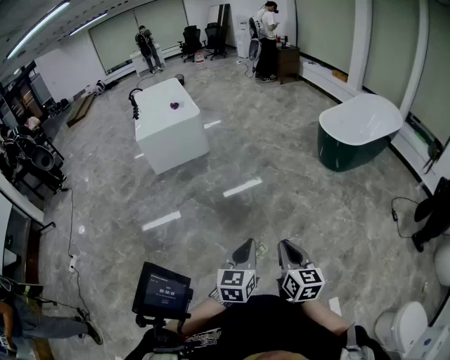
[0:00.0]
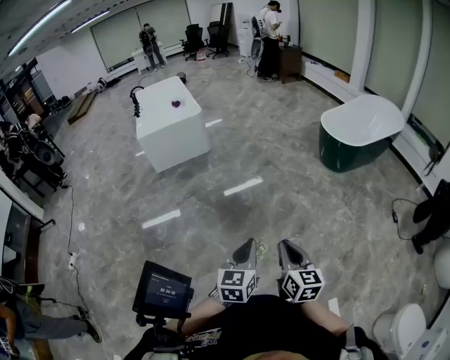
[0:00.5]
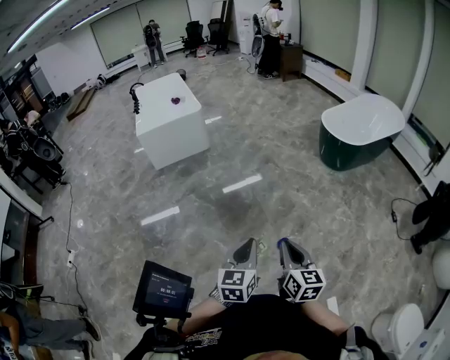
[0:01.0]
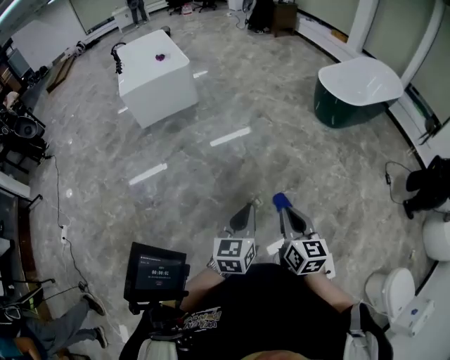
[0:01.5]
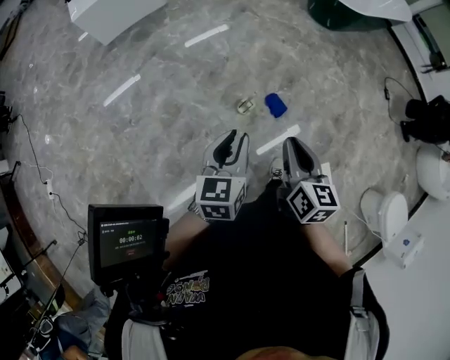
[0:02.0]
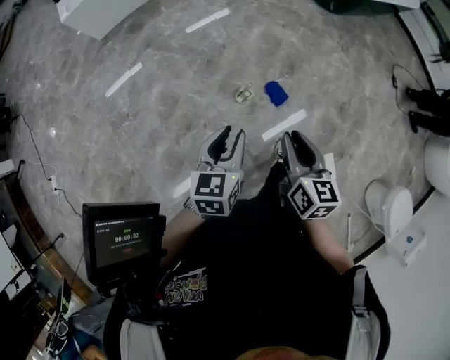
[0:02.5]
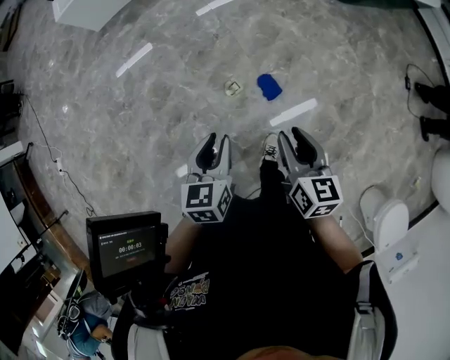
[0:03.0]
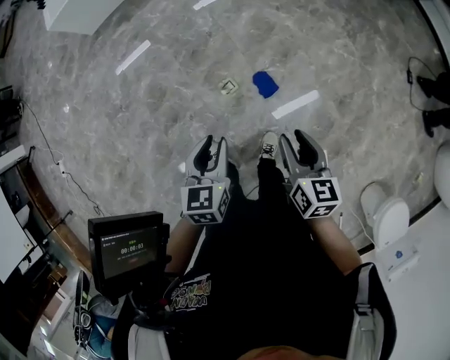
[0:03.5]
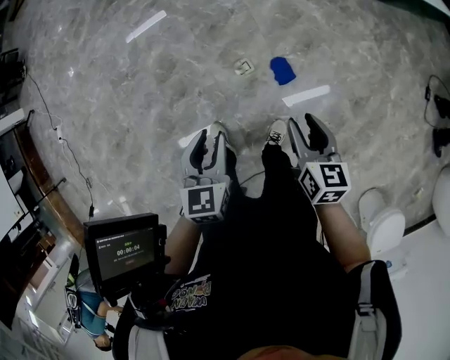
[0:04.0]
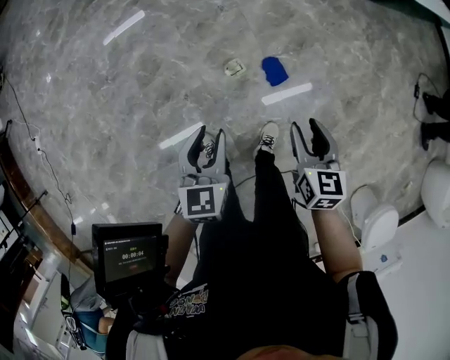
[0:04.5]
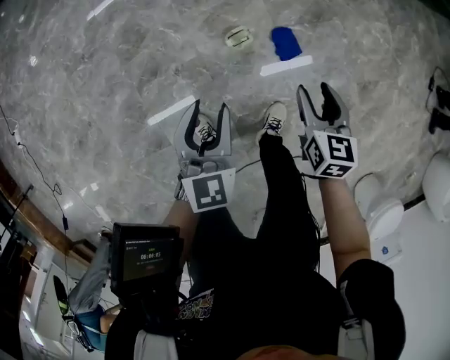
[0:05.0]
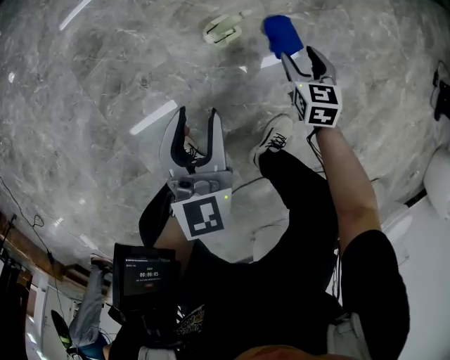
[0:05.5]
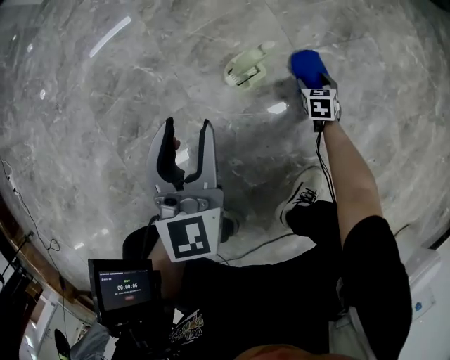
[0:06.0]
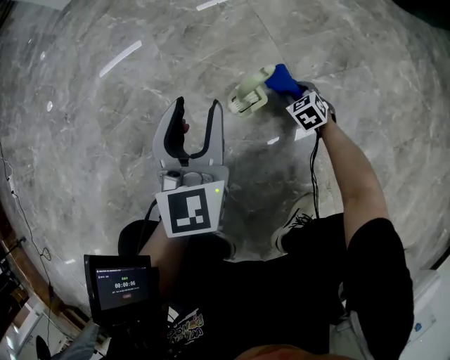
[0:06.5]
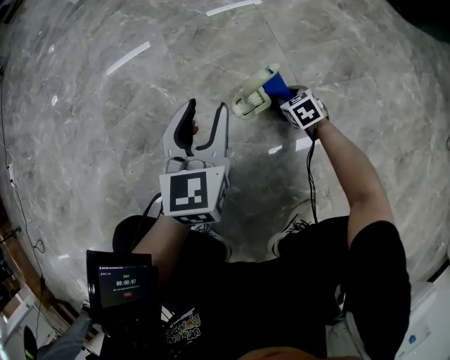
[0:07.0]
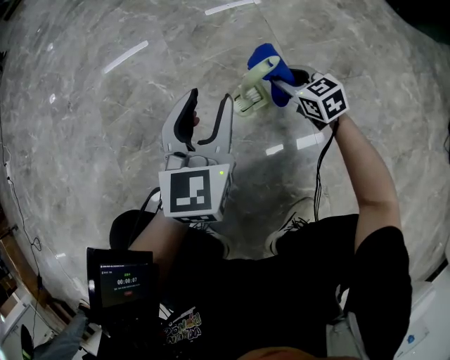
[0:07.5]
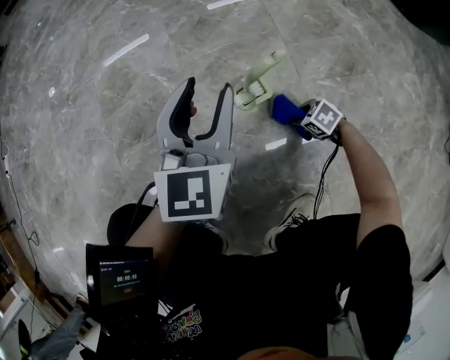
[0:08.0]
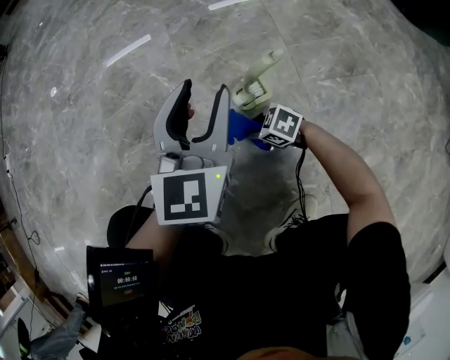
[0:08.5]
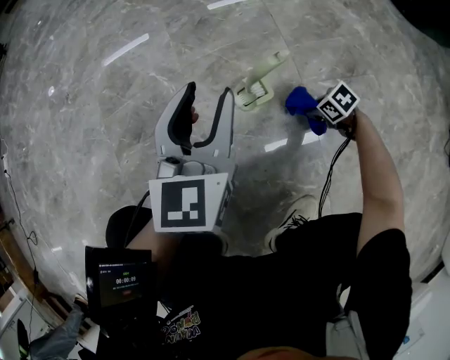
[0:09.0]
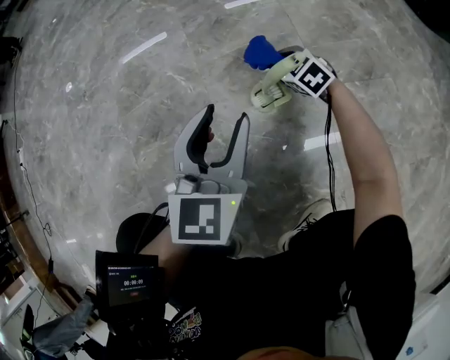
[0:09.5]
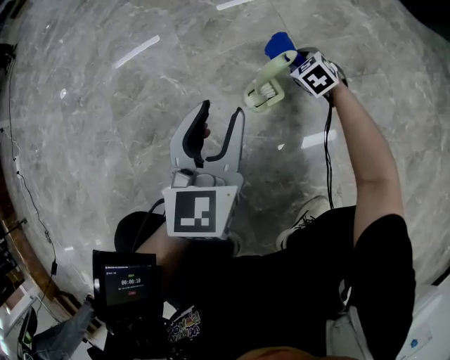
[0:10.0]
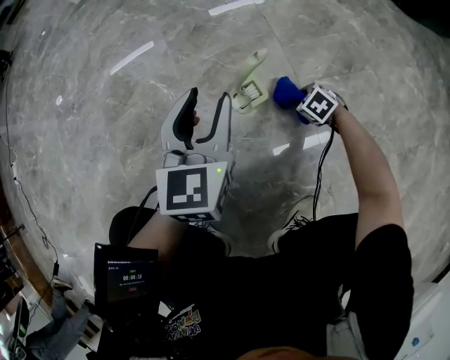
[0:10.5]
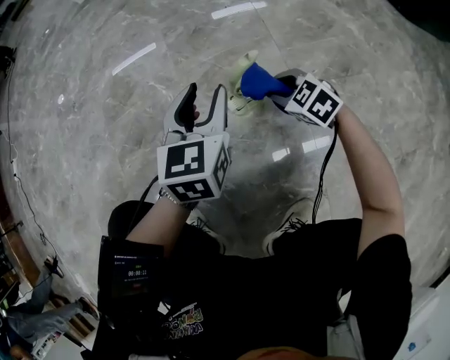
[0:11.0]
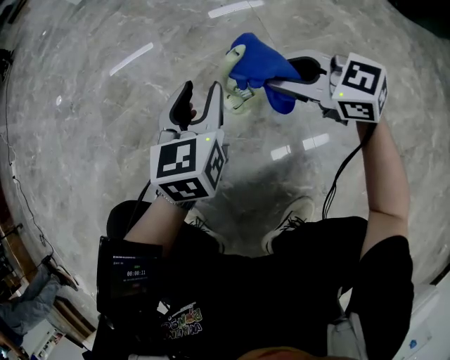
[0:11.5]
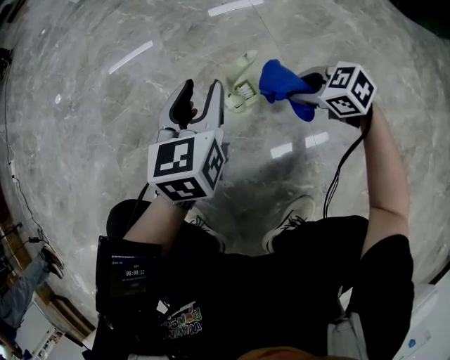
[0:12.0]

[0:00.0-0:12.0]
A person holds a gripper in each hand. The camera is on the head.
0:00.0 to 0:02.0: The left gripper goes some 10 cm to the left and downward, and opens its fingers; the right gripper moves some 5 cm.
0:02.0 to 0:04.0: The right gripper travels to the right, downward and forward by approximately 25 cm, swivels about 20 degrees, and opens. The left gripper moves to the right and downward, about 15 cm, and turns by about 30 degrees.
0:04.0 to 0:06.0: The left gripper moves downward, some 40 cm; the right gripper is displaced downward by approximately 80 cm, and swivels about 40 degrees.
0:06.0 to 0:08.0: The right gripper travels upward and back again, approximately 15 cm each way, turns by some 60 degrees, and closes up.
0:08.0 to 0:10.0: The right gripper shifts by roughly 20 cm, and turns by roughly 30 degrees.
0:10.0 to 0:12.0: The right gripper swings up and down, about 30 cm each way, with 2 reversals, and turns by approximately 30 degrees; the left gripper changes place by about 5 cm.

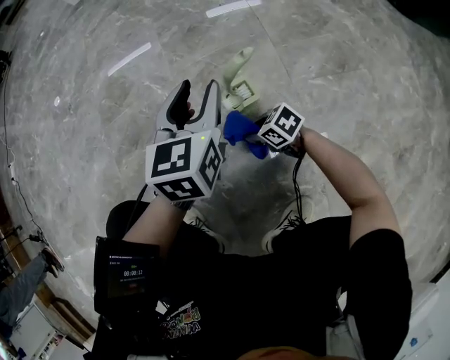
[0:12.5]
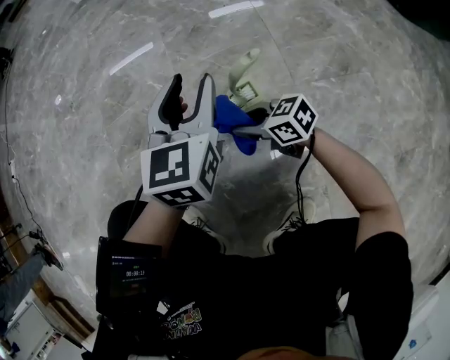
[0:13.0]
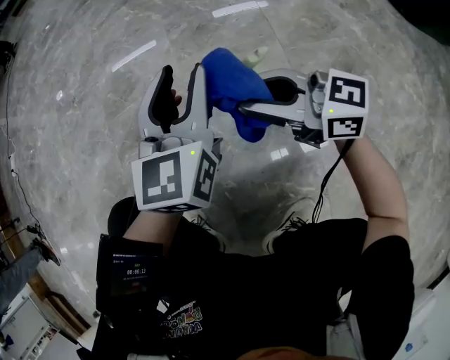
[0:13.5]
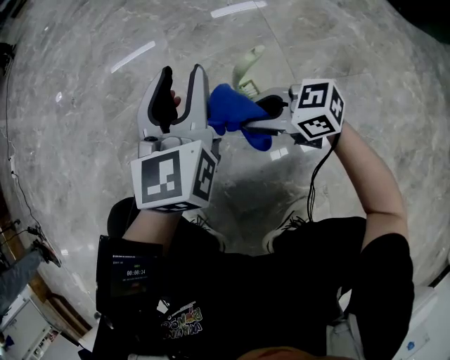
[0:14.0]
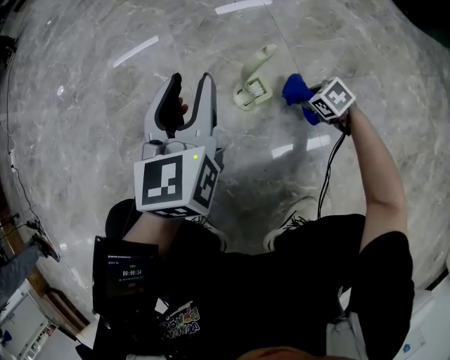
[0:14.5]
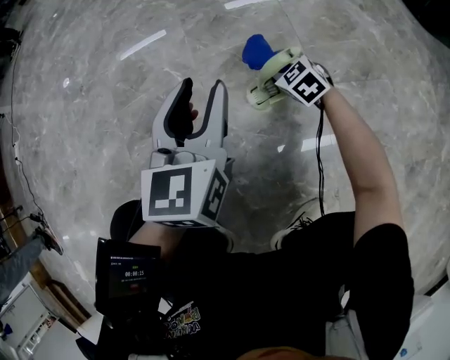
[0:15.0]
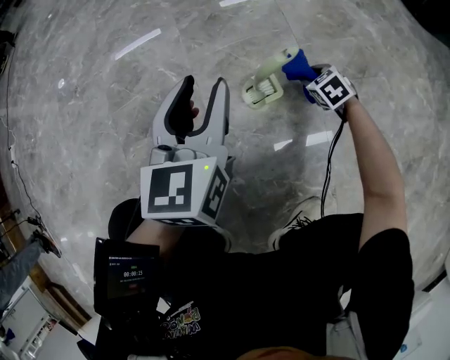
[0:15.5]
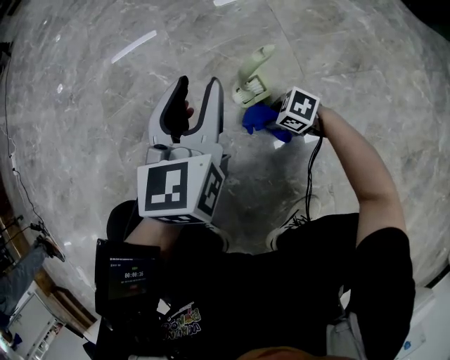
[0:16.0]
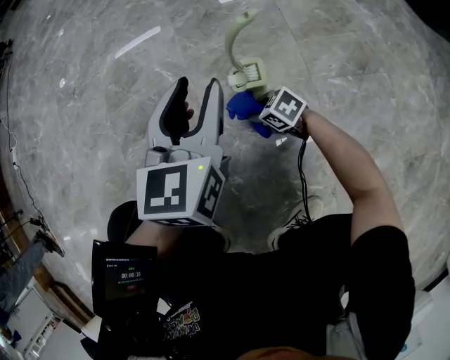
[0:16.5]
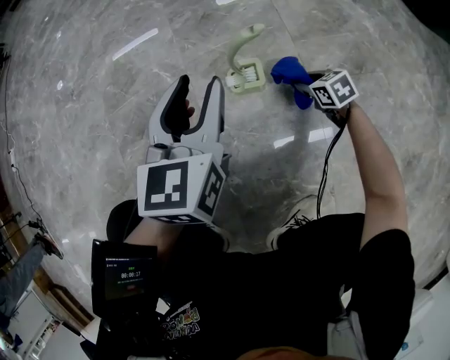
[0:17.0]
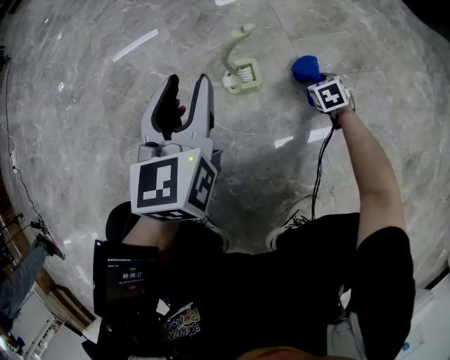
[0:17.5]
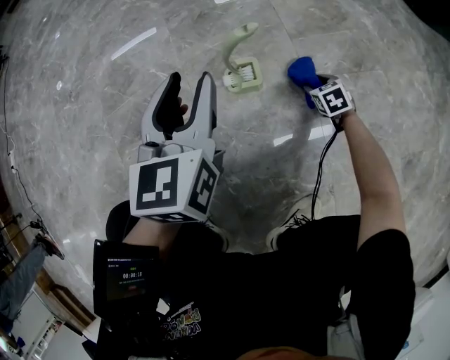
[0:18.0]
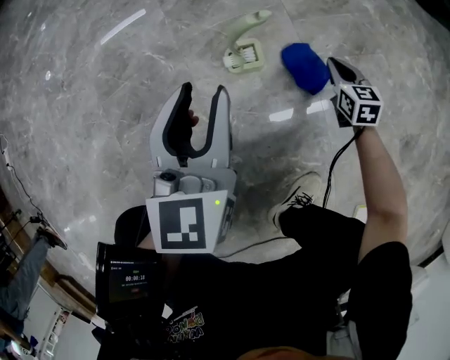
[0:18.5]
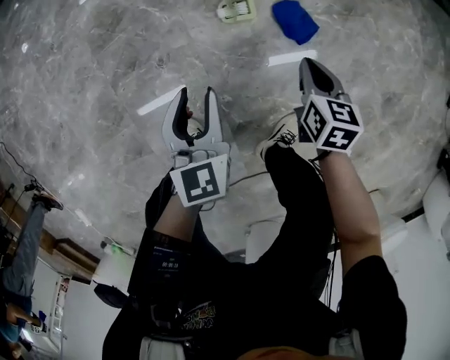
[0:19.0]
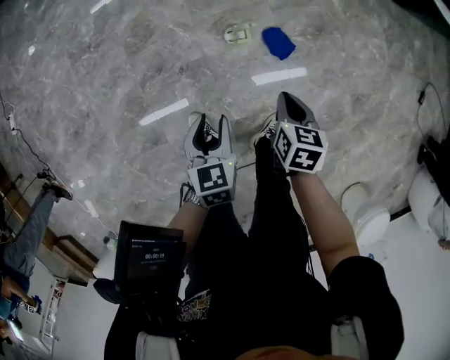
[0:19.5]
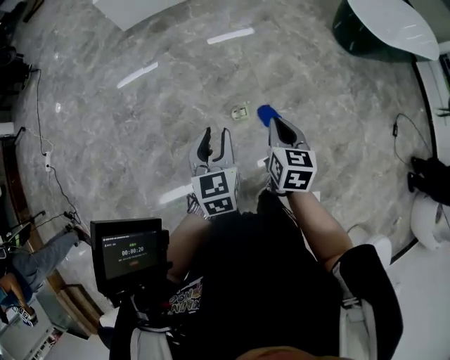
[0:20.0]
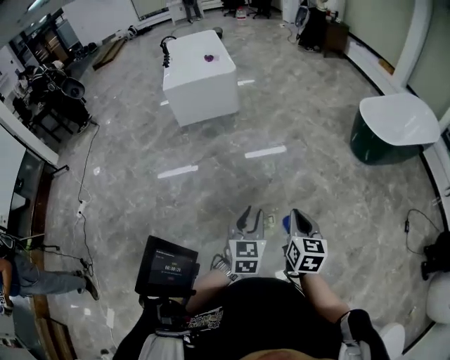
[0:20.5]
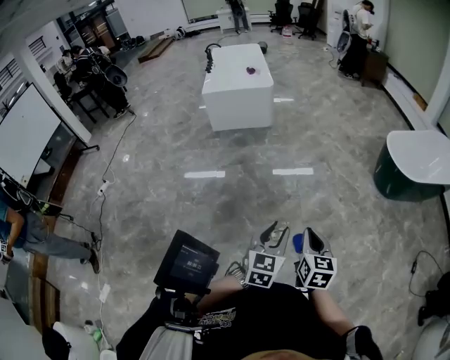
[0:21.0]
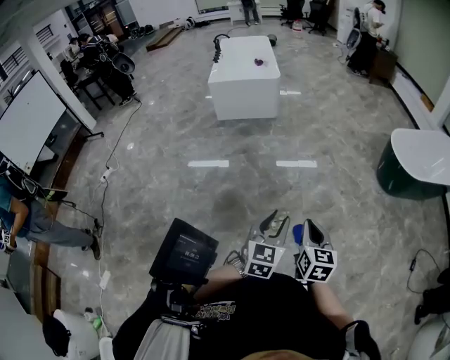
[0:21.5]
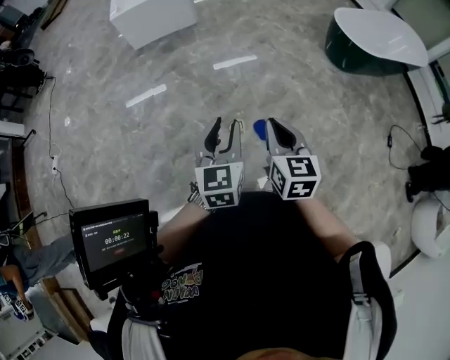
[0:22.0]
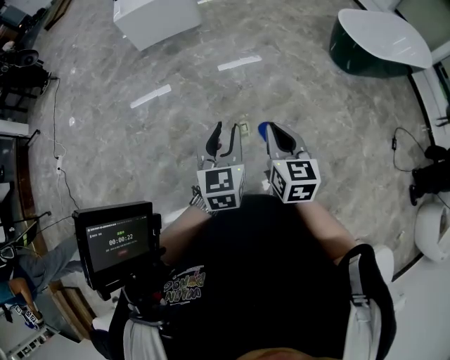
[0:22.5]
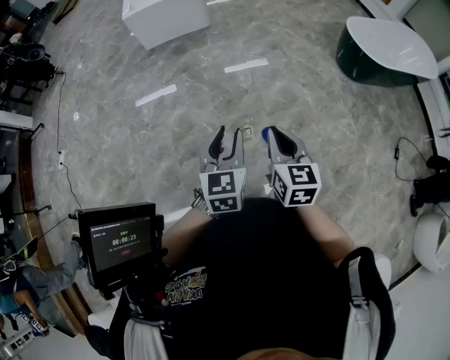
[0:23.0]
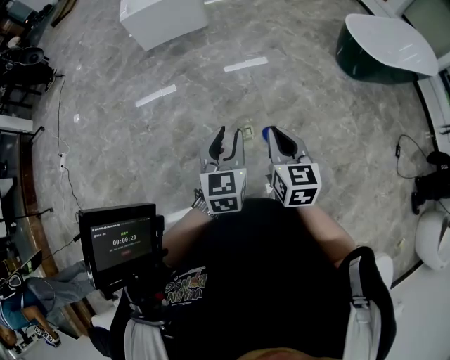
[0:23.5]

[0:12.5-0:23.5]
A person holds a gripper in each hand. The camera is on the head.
0:12.5 to 0:14.5: The right gripper goes approximately 20 cm to the right, goes upward and returns, approximately 30 cm each way, and changes its angle by approximately 20 degrees. Meanwhile the left gripper shifts by approximately 5 cm.
0:14.5 to 0:16.0: The right gripper ends up about 15 cm from where it was, and changes its angle by approximately 30 degrees.
0:16.0 to 0:18.0: The right gripper changes place by roughly 20 cm, and turns by some 50 degrees.
0:18.0 to 0:20.0: The right gripper goes about 80 cm upward, turns by roughly 40 degrees, and closes up, while the left gripper is displaced upward by approximately 50 cm.
0:20.0 to 0:21.5: The right gripper shifts roughly 10 cm upward and backward; the left gripper goes about 15 cm upward, to the right and backward.
0:21.5 to 0:23.5: The grippers move only a little.

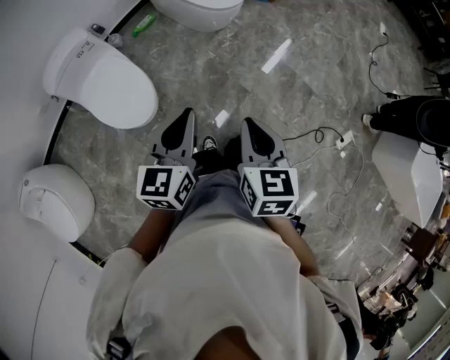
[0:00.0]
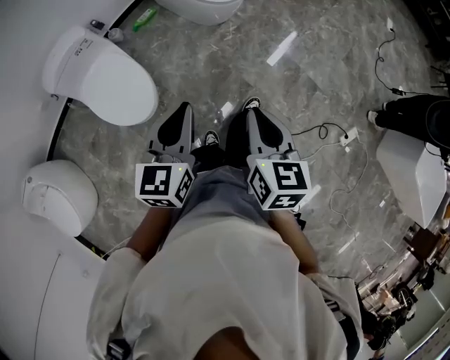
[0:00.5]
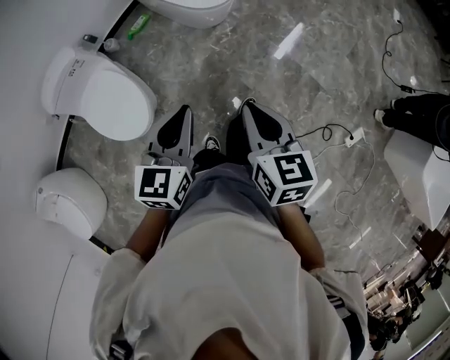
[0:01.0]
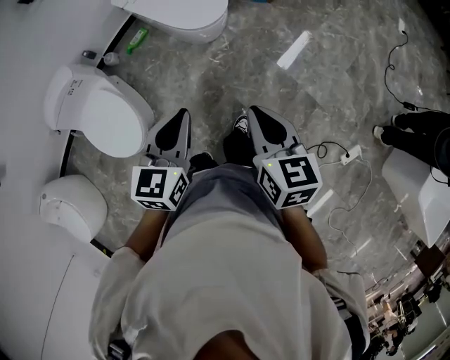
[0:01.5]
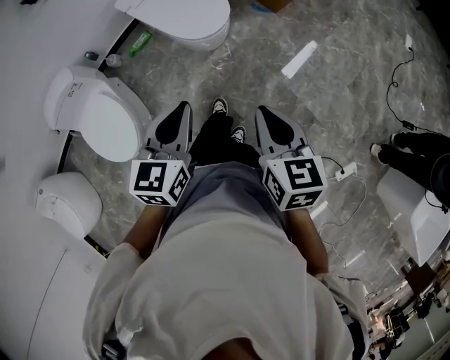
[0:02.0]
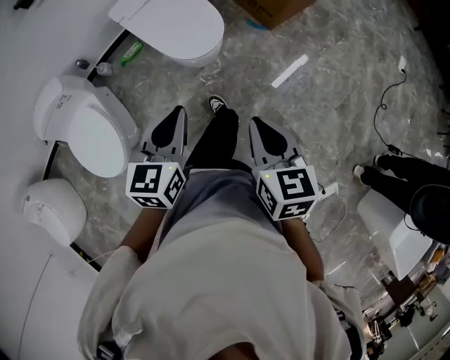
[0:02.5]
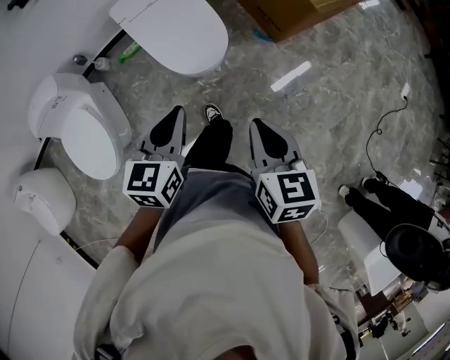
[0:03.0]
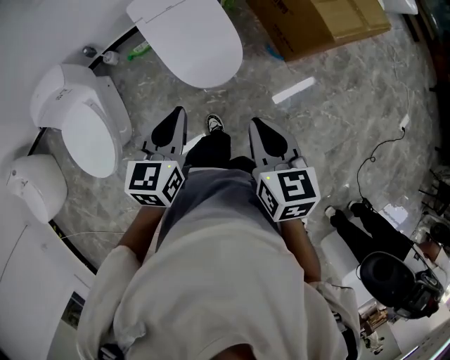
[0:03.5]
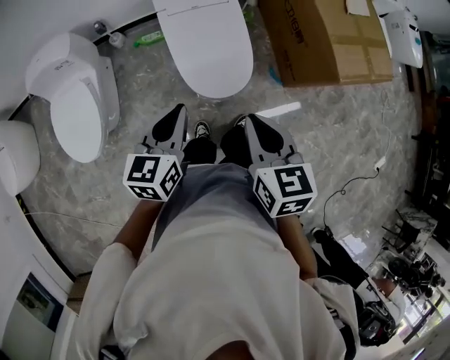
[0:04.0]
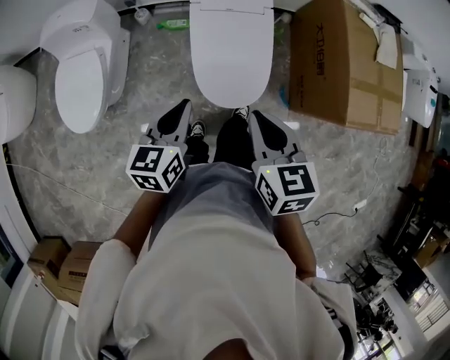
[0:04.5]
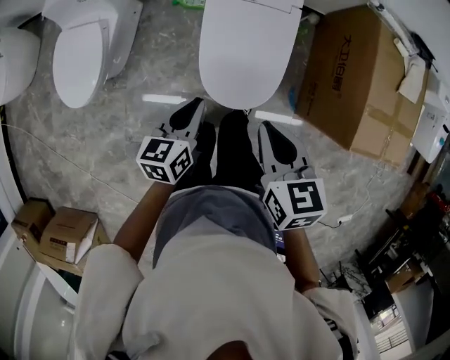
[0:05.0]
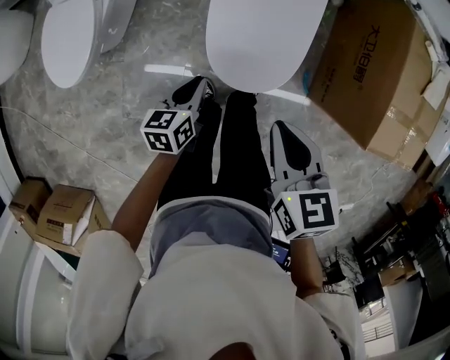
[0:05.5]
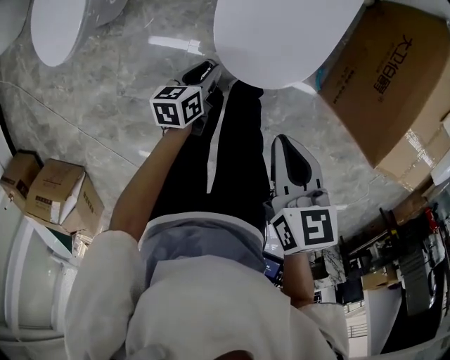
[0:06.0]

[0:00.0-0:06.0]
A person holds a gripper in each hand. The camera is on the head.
0:00.0 to 0:02.0: Both grippers travel together forward and to the right, some 35 cm.
0:02.0 to 0:04.0: The right gripper changes place by approximately 35 cm, and rotates roughly 30 degrees; the left gripper shifts by about 30 cm, and turns by approximately 30 degrees.
0:04.0 to 0:06.0: The left gripper goes approximately 40 cm downward, turns by some 40 degrees, and opens, while the right gripper shifts some 20 cm downward, and swivels roughly 30 degrees.
